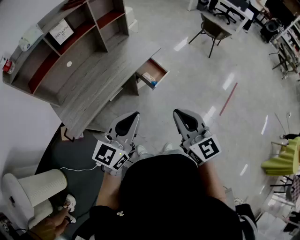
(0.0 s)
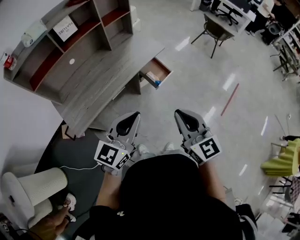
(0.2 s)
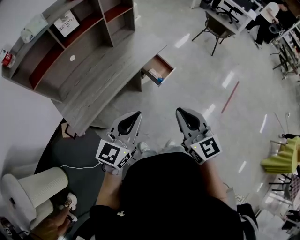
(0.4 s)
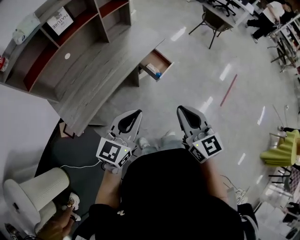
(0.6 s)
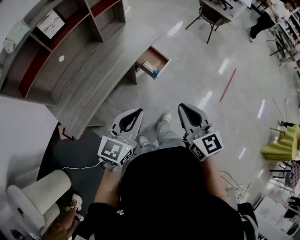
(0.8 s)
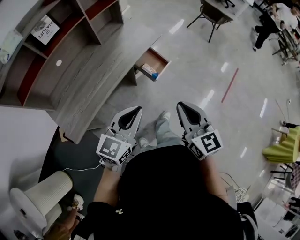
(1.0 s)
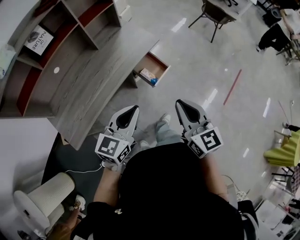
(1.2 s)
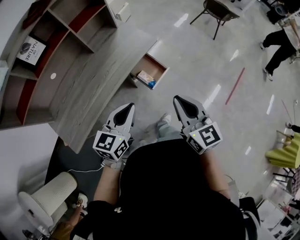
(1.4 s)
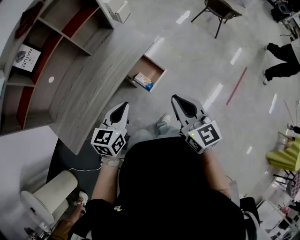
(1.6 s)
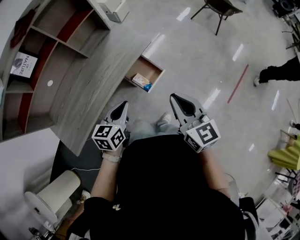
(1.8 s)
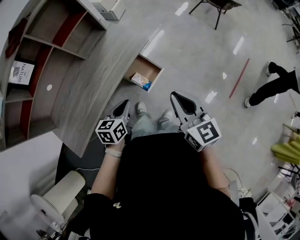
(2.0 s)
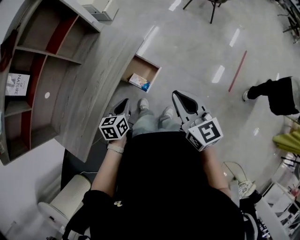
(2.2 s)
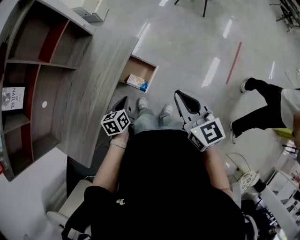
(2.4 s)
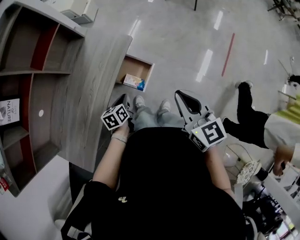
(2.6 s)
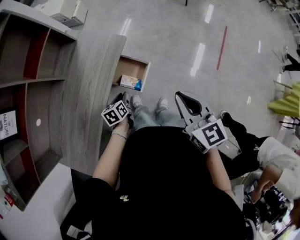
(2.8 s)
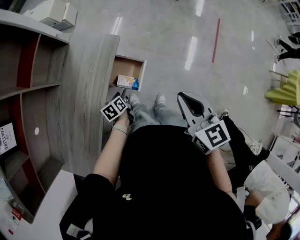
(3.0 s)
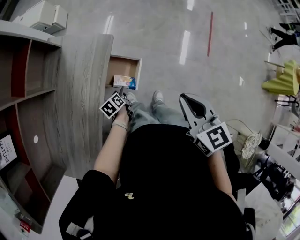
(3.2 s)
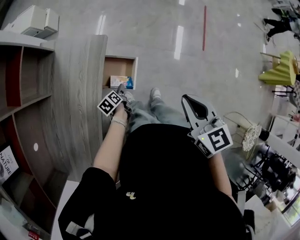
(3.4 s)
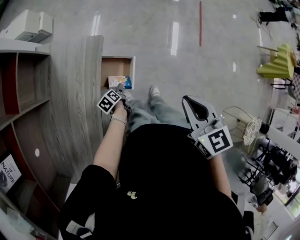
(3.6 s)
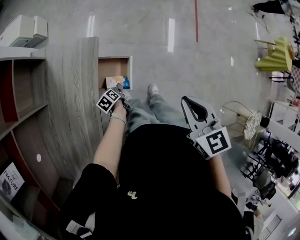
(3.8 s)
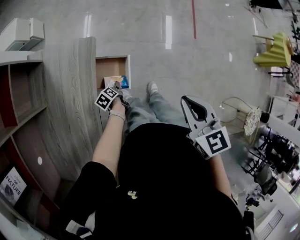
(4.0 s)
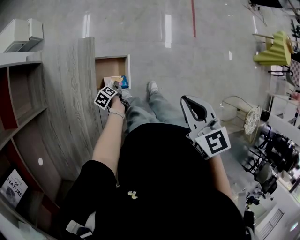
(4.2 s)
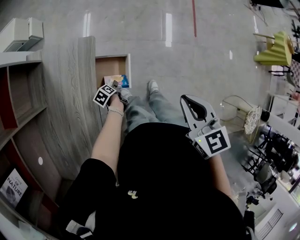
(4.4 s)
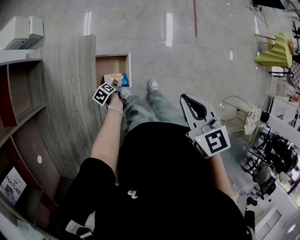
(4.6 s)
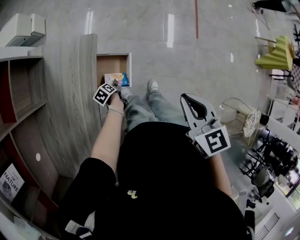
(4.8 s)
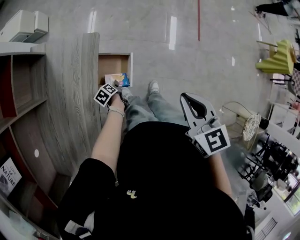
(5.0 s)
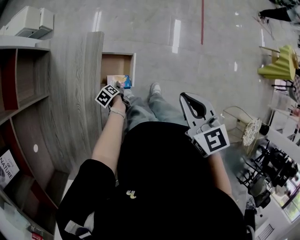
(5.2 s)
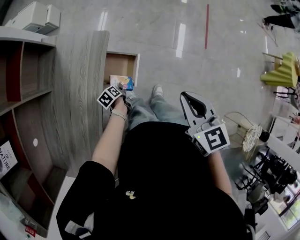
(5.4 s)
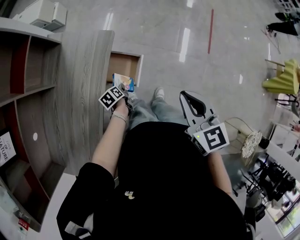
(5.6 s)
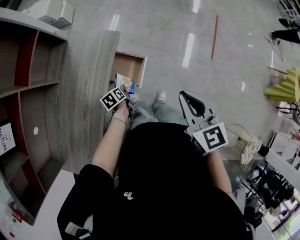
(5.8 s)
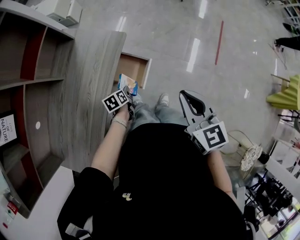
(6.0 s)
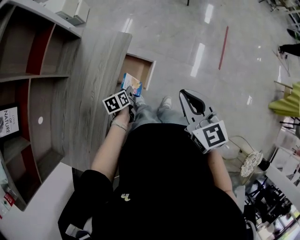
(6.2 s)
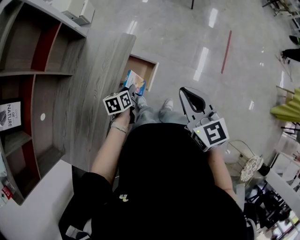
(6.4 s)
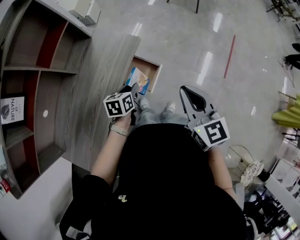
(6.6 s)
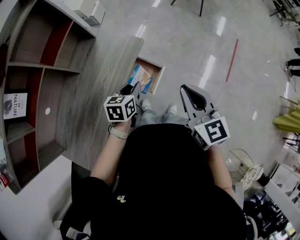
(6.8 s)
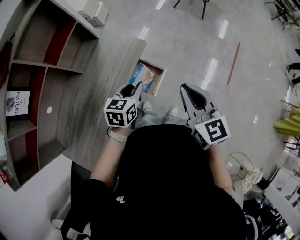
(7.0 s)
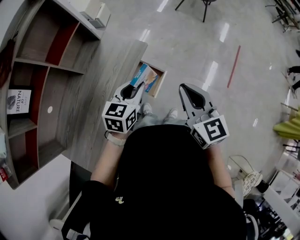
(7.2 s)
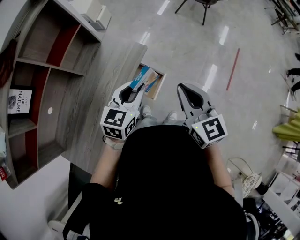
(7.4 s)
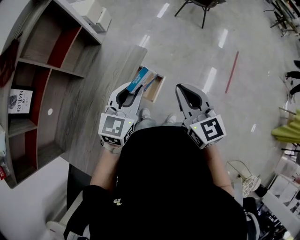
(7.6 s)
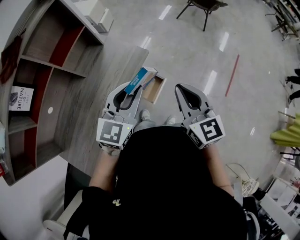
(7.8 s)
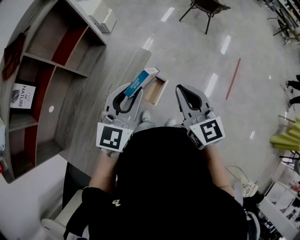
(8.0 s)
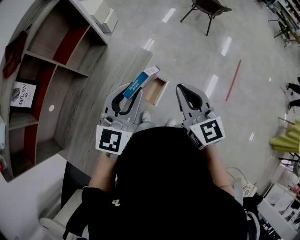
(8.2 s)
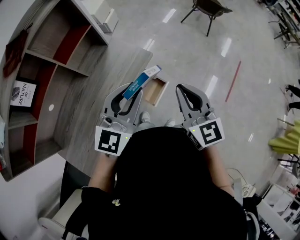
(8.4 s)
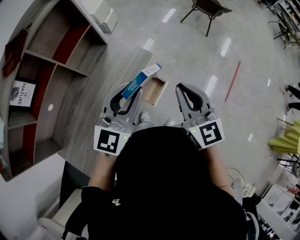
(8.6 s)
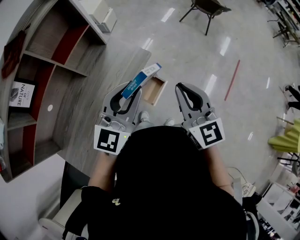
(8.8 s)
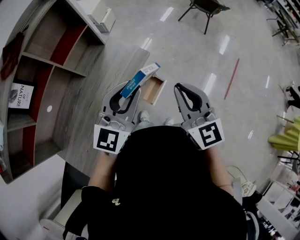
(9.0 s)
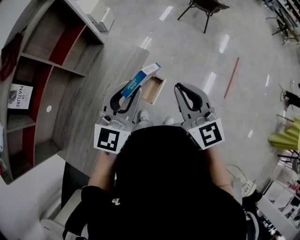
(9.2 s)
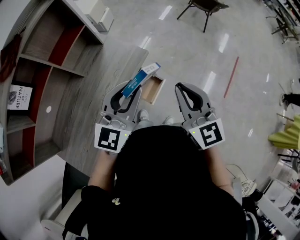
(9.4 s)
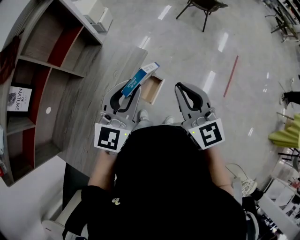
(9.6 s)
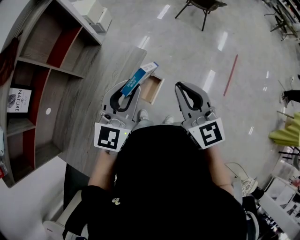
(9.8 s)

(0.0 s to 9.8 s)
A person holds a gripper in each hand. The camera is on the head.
0.0 s - 1.4 s: The right gripper goes roughly 20 cm forward, while the left gripper moves forward and downward, about 25 cm.
1.4 s - 2.8 s: The left gripper shifts about 35 cm downward and forward, and angles its fingers downward, by approximately 30 degrees, while the right gripper moves forward, approximately 10 cm, and rotates roughly 20 degrees.
2.8 s - 4.2 s: The left gripper travels downward by about 15 cm, turns by some 20 degrees, and opens up. The right gripper turns by about 20 degrees.
4.2 s - 5.6 s: The left gripper heads upward, covering approximately 5 cm, and closes.
5.6 s - 7.0 s: The left gripper heads upward, covering some 30 cm, and turns by roughly 50 degrees; the right gripper travels upward by roughly 5 cm.
7.0 s - 8.4 s: The left gripper travels upward by roughly 20 cm, and angles its fingers upward, by about 30 degrees; the right gripper shifts roughly 5 cm upward.
8.4 s - 9.8 s: The grippers move only a little.

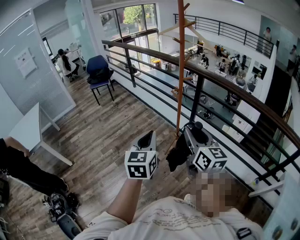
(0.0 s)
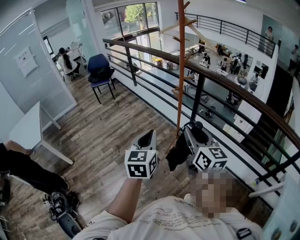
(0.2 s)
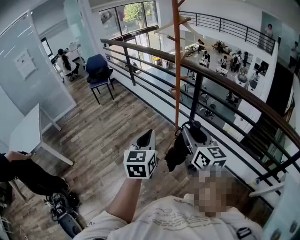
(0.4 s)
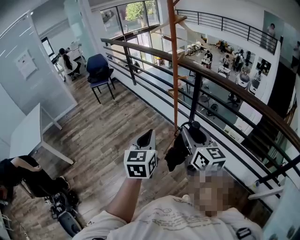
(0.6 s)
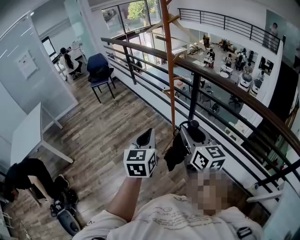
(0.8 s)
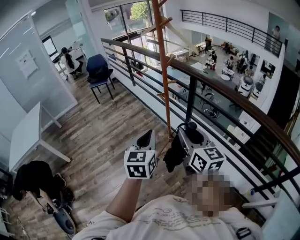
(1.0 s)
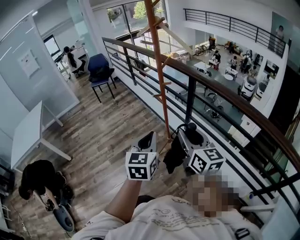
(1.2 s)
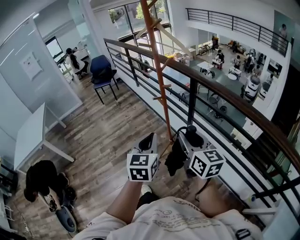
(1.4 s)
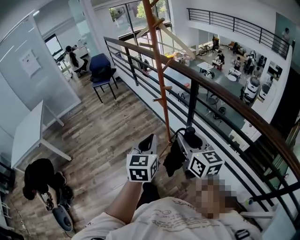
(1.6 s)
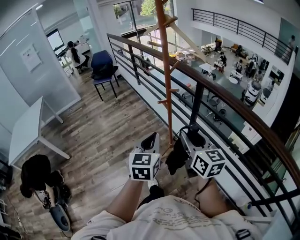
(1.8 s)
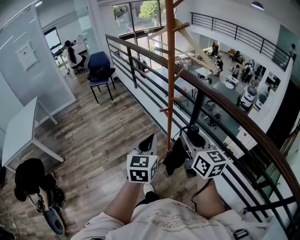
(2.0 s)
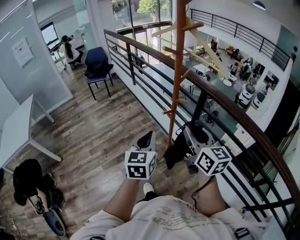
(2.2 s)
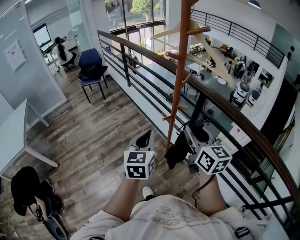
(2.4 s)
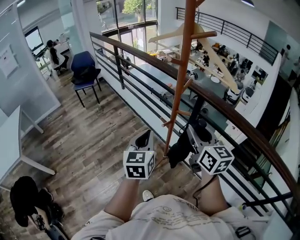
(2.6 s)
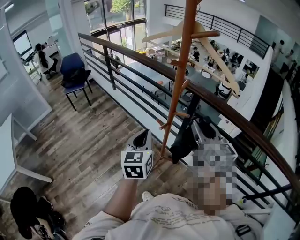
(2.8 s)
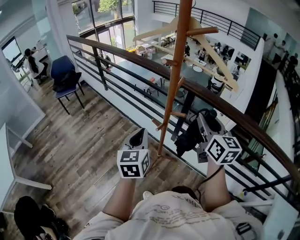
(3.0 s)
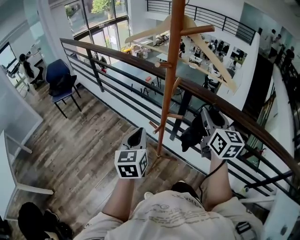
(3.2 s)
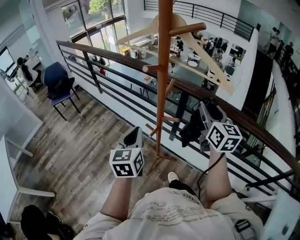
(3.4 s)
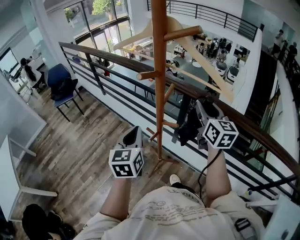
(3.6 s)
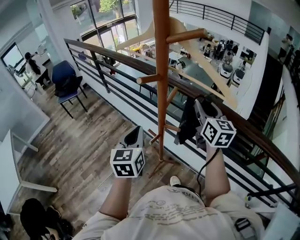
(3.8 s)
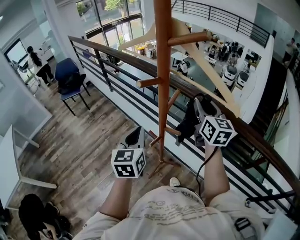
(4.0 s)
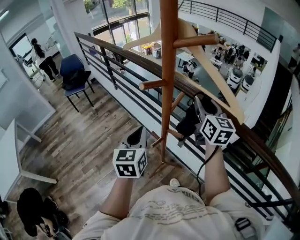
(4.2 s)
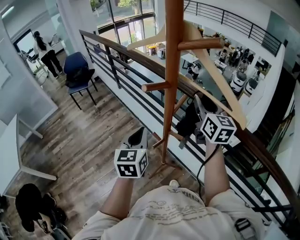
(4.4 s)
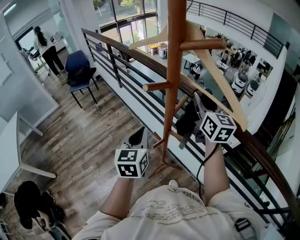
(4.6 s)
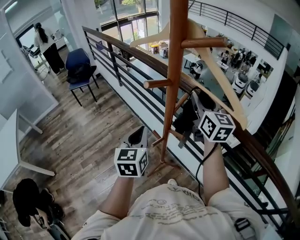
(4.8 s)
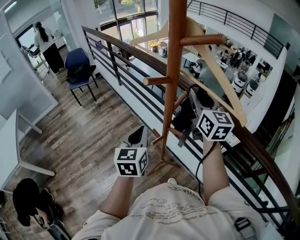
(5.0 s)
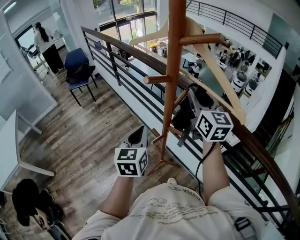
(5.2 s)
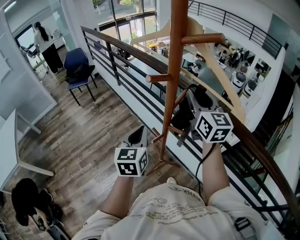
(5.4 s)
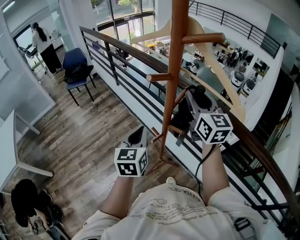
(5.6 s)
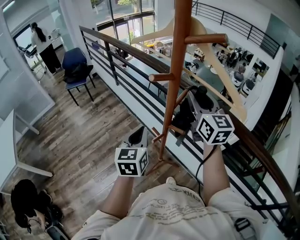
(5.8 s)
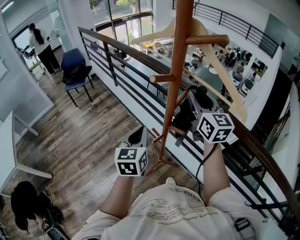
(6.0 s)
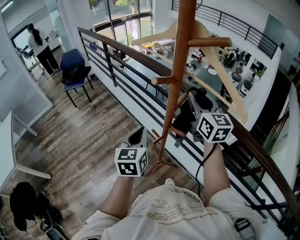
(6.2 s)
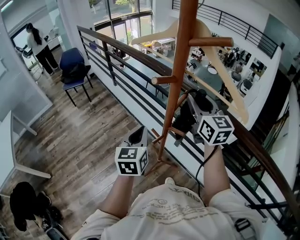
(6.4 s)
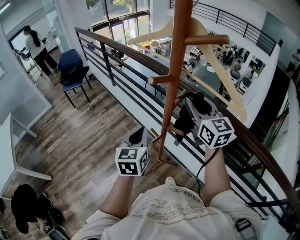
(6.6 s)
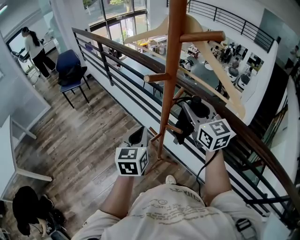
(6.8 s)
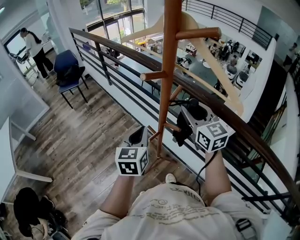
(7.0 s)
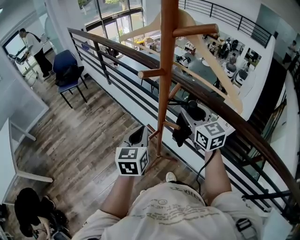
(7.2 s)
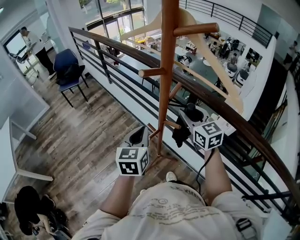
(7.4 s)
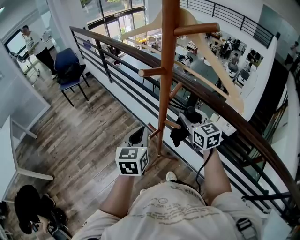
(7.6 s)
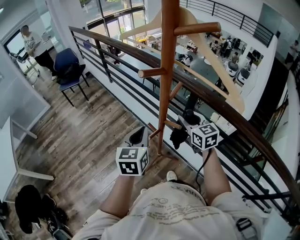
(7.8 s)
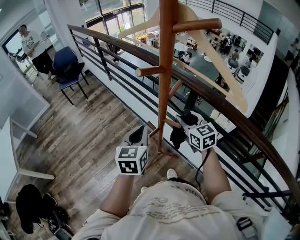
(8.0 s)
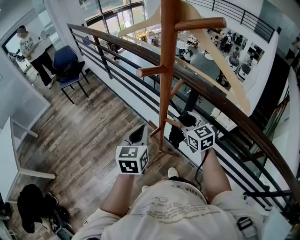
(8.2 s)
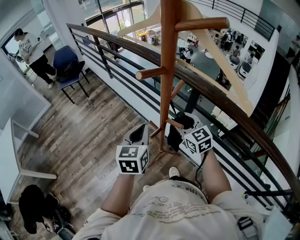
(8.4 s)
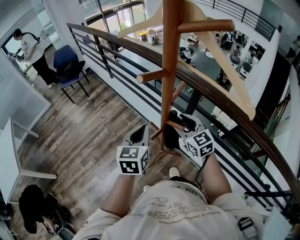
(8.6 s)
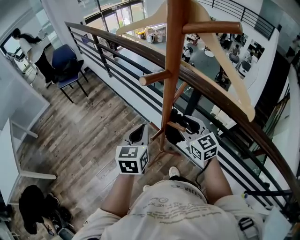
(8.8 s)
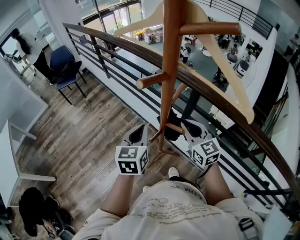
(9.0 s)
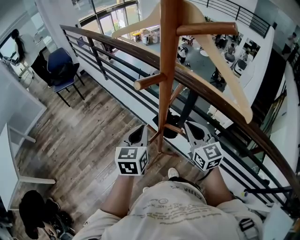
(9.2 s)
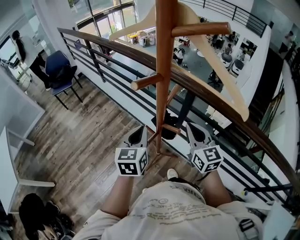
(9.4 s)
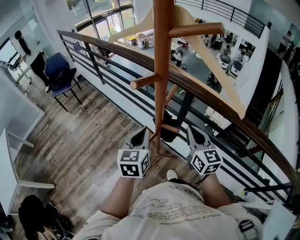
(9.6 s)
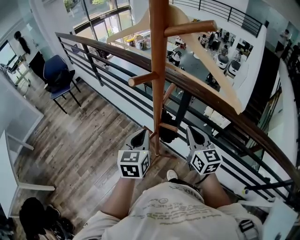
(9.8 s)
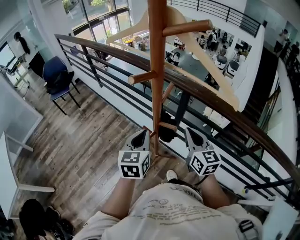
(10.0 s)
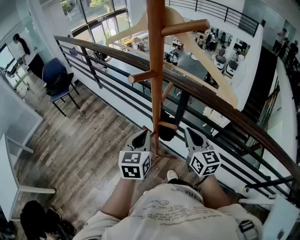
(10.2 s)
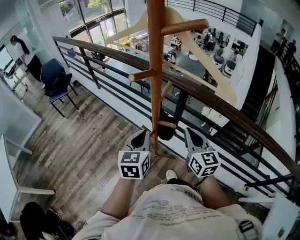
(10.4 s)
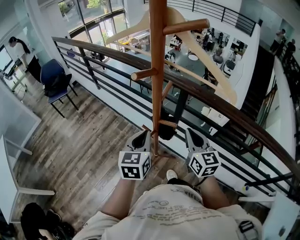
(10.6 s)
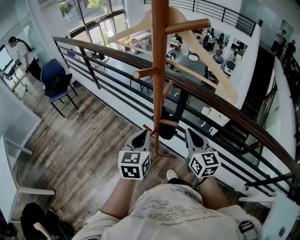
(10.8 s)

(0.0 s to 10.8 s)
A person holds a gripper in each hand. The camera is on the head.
0.0 s - 1.6 s: The grippers both shift to the right and forward by some 25 cm.
1.6 s - 3.0 s: The right gripper is displaced forward by some 30 cm, and rotates about 30 degrees. The left gripper shifts approximately 30 cm forward and to the left.
3.0 s - 4.6 s: The left gripper goes roughly 10 cm forward. The right gripper travels forward by some 20 cm.
4.6 s - 6.2 s: The grippers make only small movements.
6.2 s - 7.8 s: The right gripper travels downward by some 15 cm.
7.8 s - 9.2 s: The right gripper closes.
9.2 s - 10.8 s: The right gripper shifts some 5 cm backward.

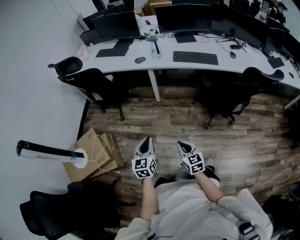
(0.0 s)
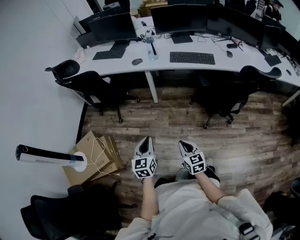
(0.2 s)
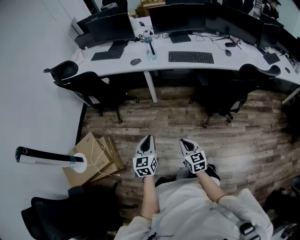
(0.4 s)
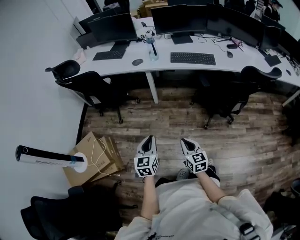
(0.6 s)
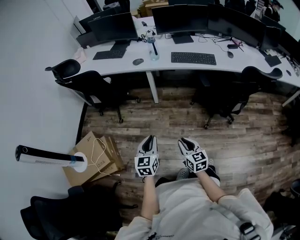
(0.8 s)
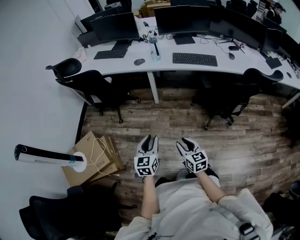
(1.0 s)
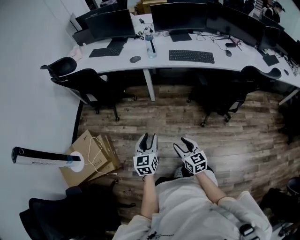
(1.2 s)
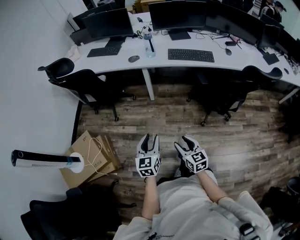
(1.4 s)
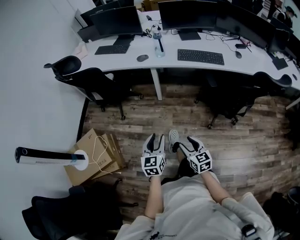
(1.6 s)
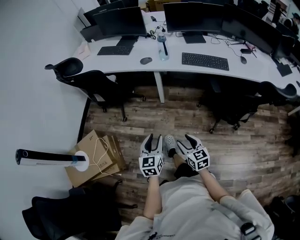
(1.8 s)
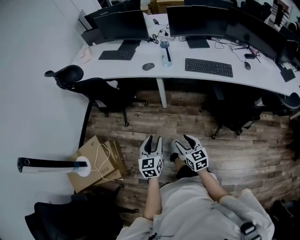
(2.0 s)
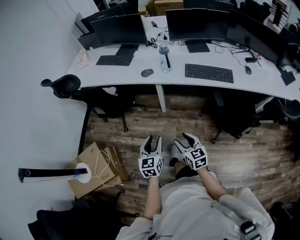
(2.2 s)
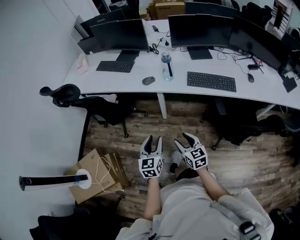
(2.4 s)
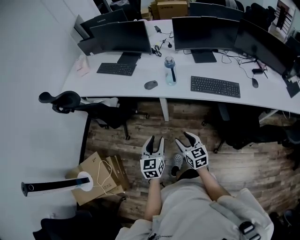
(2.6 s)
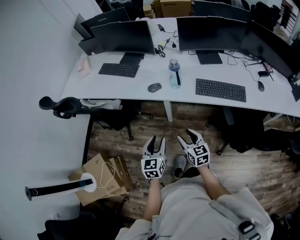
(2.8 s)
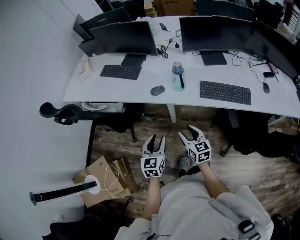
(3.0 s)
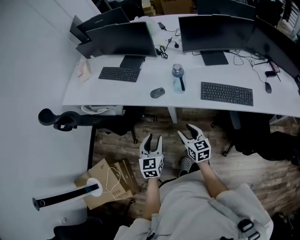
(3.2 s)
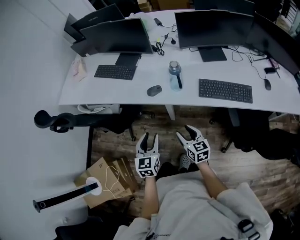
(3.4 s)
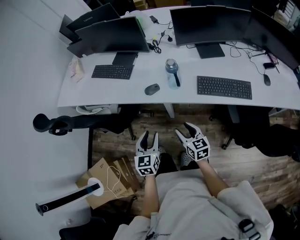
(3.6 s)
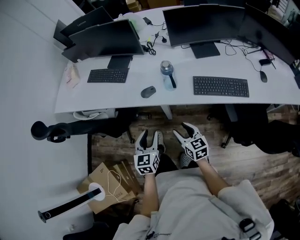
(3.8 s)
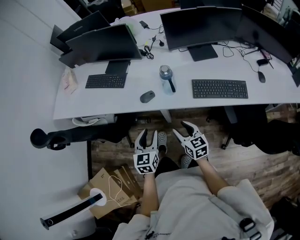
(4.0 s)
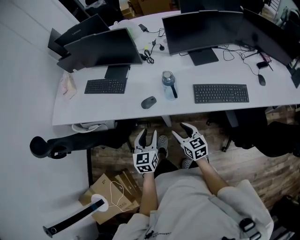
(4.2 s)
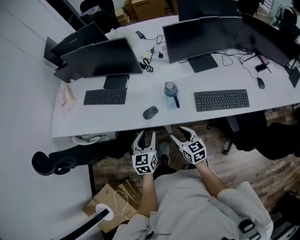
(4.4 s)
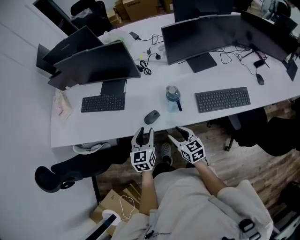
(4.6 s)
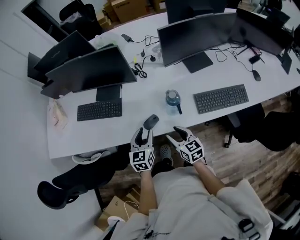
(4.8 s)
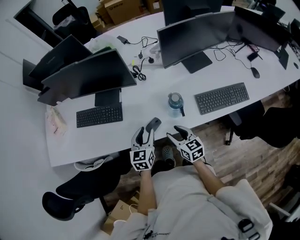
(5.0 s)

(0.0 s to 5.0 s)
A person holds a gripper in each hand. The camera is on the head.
0.0 s - 1.6 s: The two grippers go roughly 5 cm forward. The right gripper opens its fingers, while the left gripper opens its fingers.
1.6 s - 3.4 s: Both grippers are carried forward, roughly 50 cm.
3.4 s - 5.0 s: The two grippers go about 25 cm forward. The left gripper changes its angle by roughly 20 degrees.
